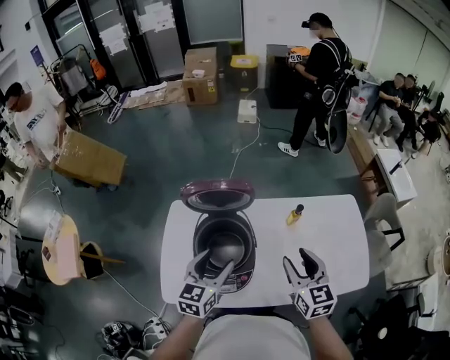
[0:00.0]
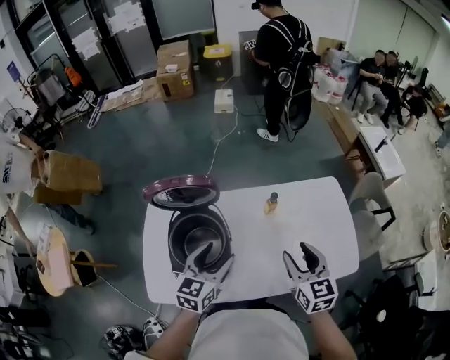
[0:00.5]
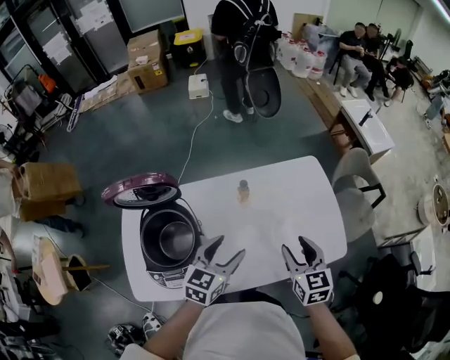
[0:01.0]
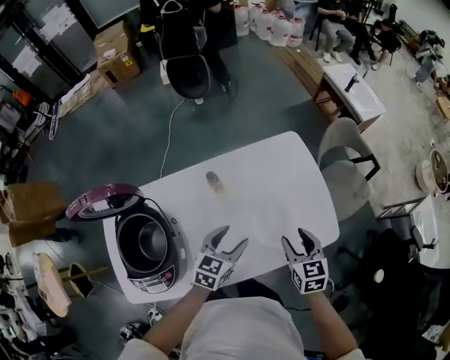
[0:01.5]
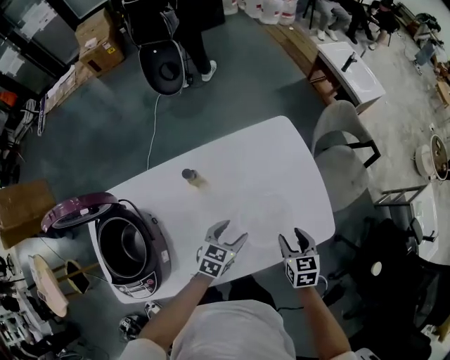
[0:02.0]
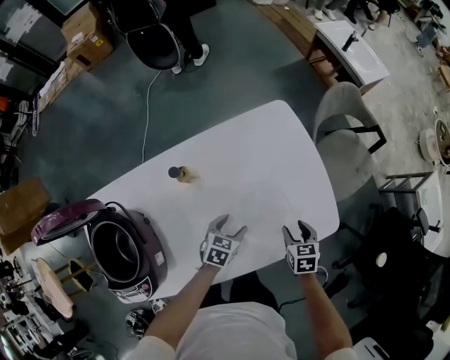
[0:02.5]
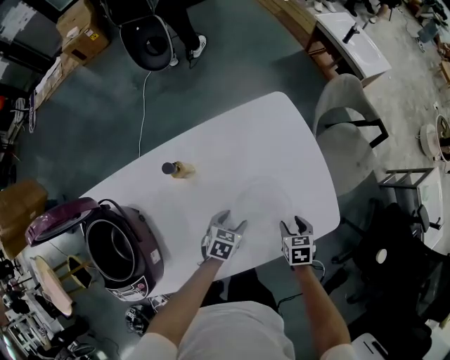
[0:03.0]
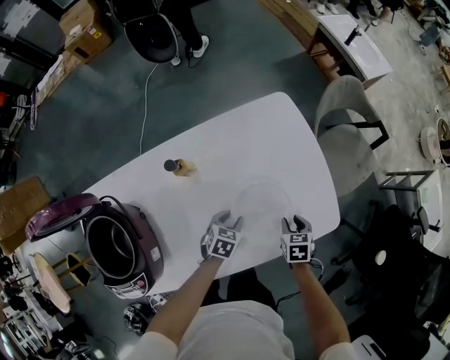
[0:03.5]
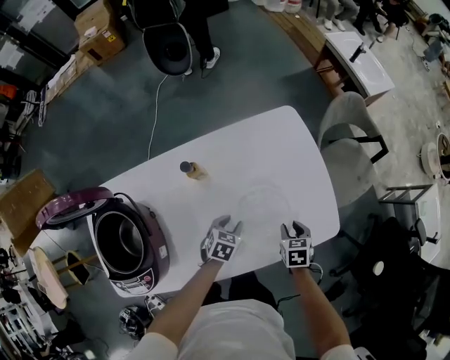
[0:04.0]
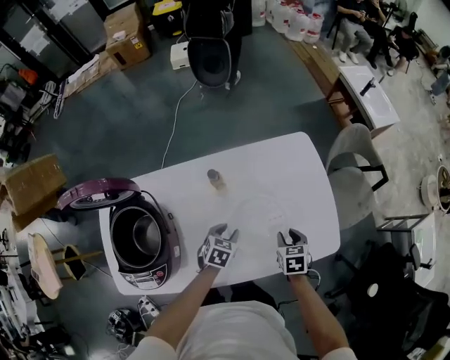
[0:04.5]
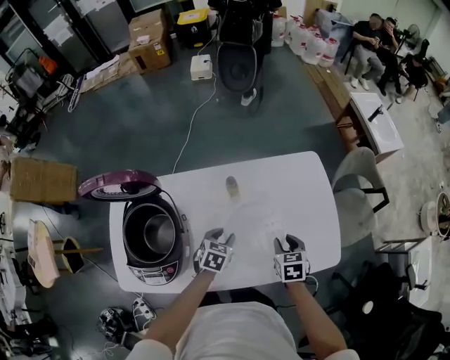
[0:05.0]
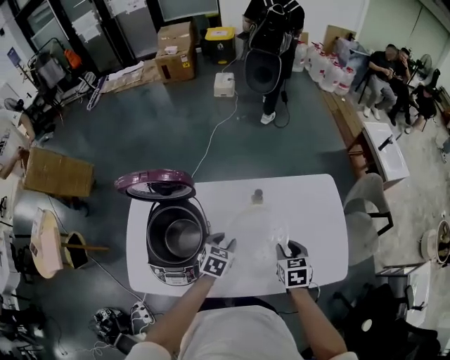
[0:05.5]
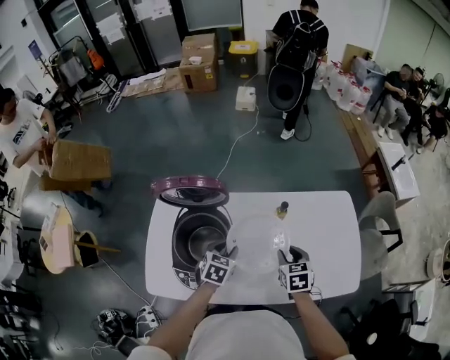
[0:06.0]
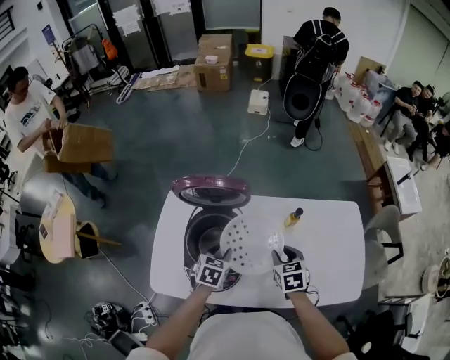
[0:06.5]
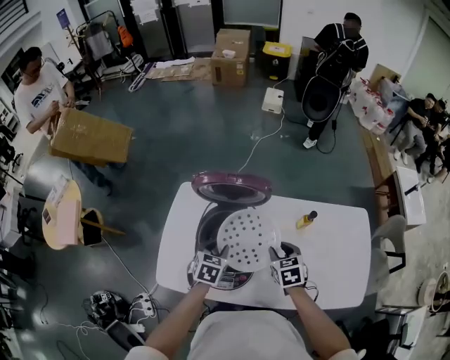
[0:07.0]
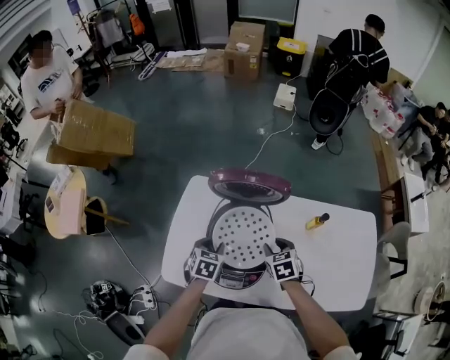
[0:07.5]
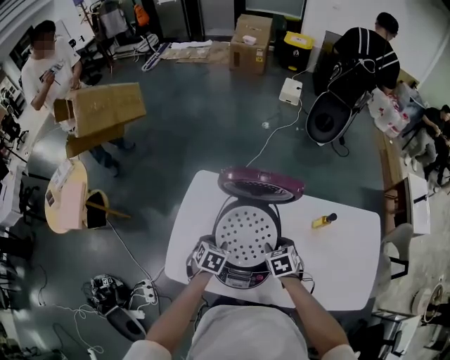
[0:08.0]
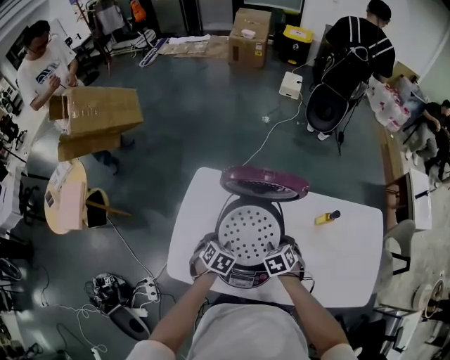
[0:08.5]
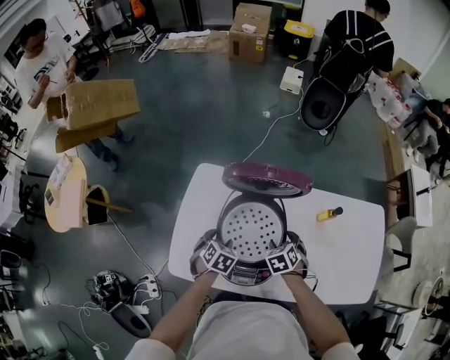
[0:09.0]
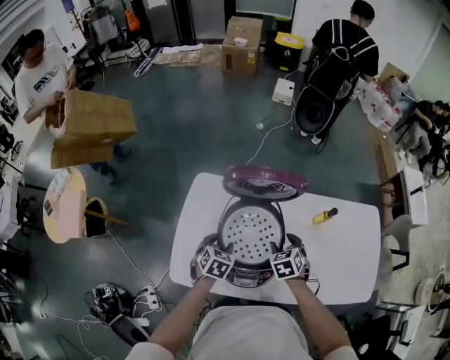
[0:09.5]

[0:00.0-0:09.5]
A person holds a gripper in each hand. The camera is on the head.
0.0 to 2.0 s: The right gripper shifts by about 50 cm, and rotates some 40 degrees, while the left gripper ends up about 50 cm from where it was, and changes its angle by about 40 degrees.
2.0 to 4.0 s: Both grippers travel together downward, approximately 10 cm. The left gripper closes up.
4.0 to 5.5 s: Both grippers travel together to the left and upward, some 25 cm. The right gripper turns by about 20 degrees.
5.5 to 7.5 s: Both grippers travel together to the left, some 30 cm. The left gripper changes its angle by roughly 20 degrees, while the right gripper rotates some 30 degrees.

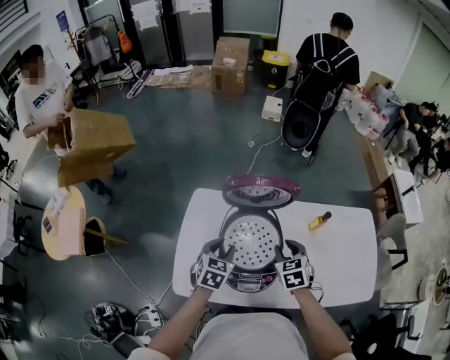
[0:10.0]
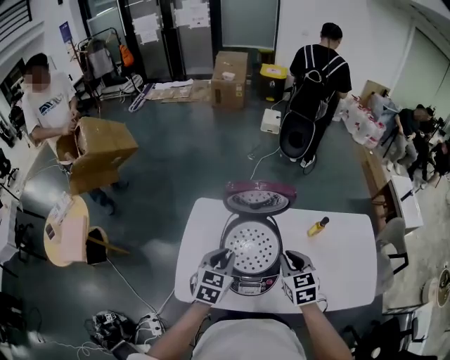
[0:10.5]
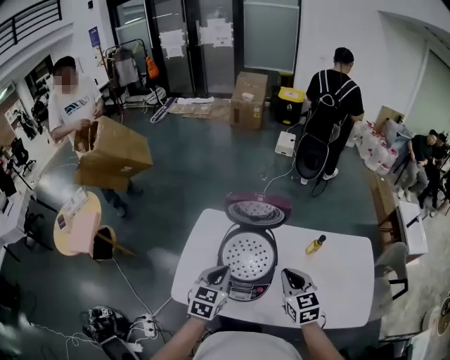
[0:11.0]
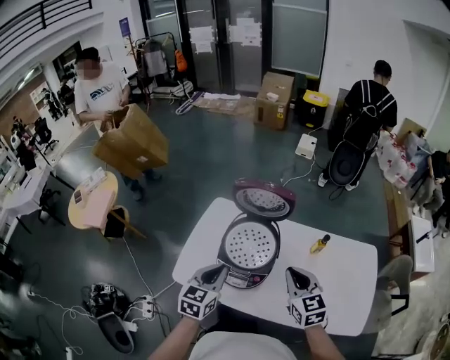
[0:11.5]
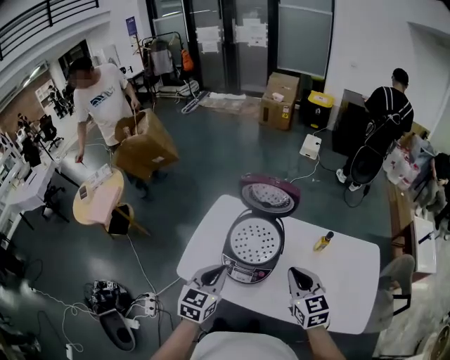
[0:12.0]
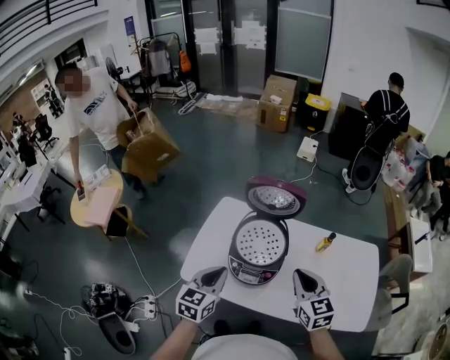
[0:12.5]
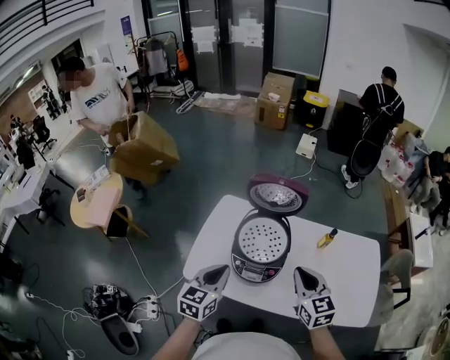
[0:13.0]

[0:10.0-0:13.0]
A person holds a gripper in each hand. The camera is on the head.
10.0 to 11.5 s: The left gripper travels backward and upward by about 20 cm, changes its angle by about 20 degrees, and closes. The right gripper travels upward, backward and to the right by about 20 cm, swivels approximately 30 degrees, and closes up.
11.5 to 13.0 s: The left gripper heads to the left, covering about 5 cm, while the right gripper moves approximately 5 cm.

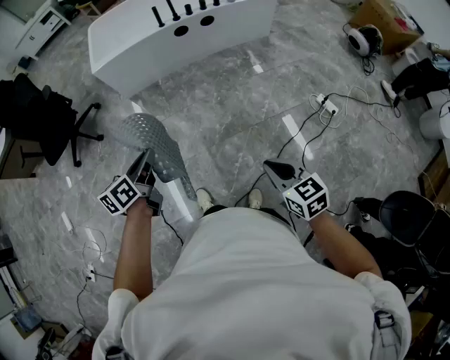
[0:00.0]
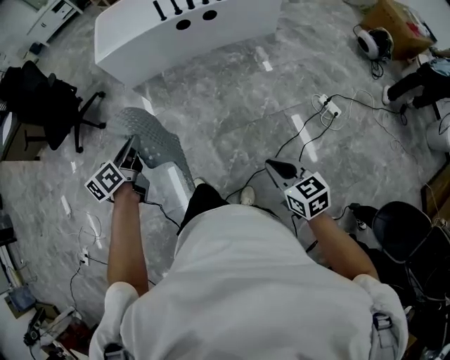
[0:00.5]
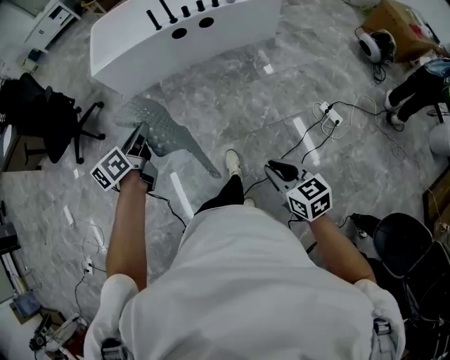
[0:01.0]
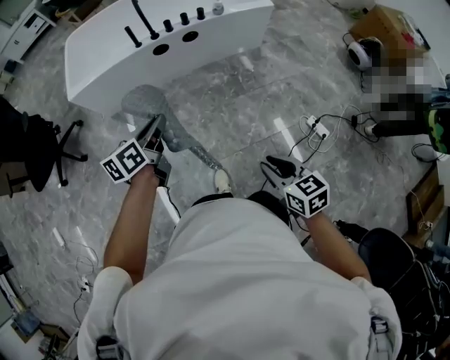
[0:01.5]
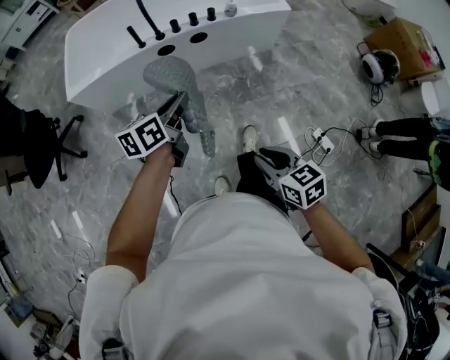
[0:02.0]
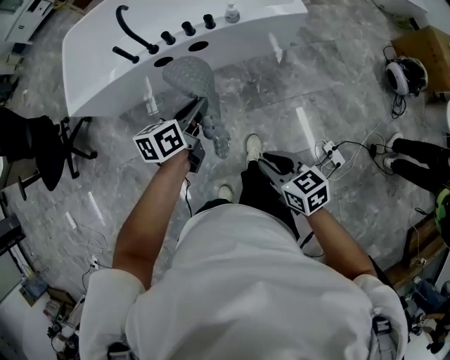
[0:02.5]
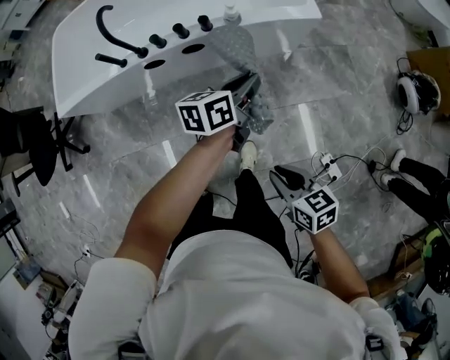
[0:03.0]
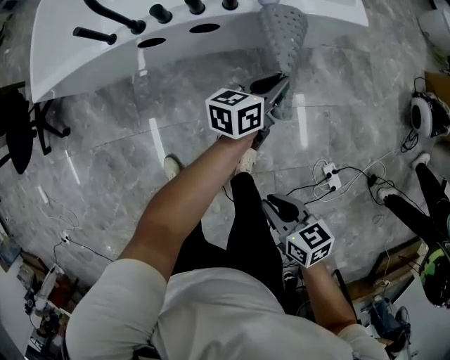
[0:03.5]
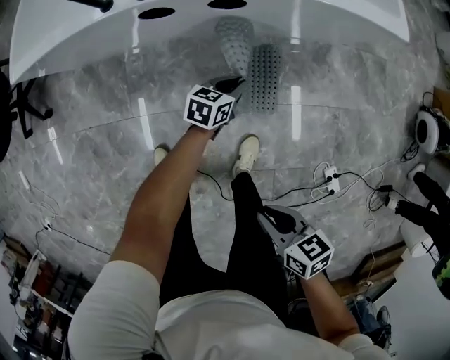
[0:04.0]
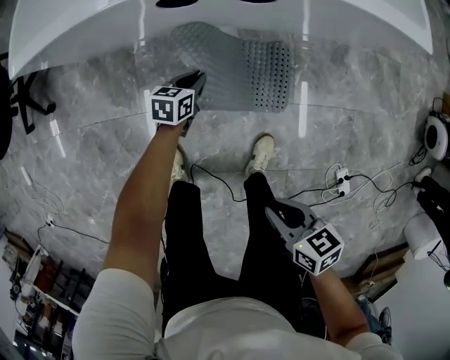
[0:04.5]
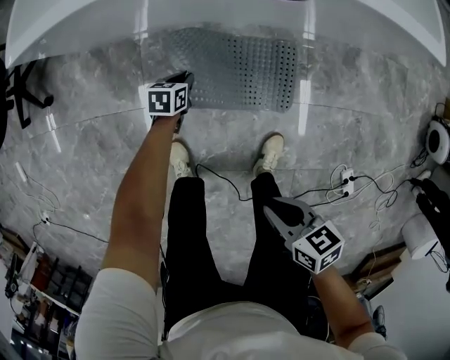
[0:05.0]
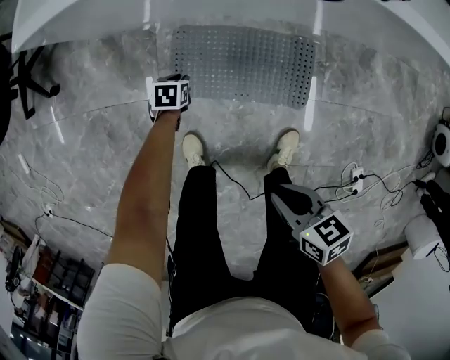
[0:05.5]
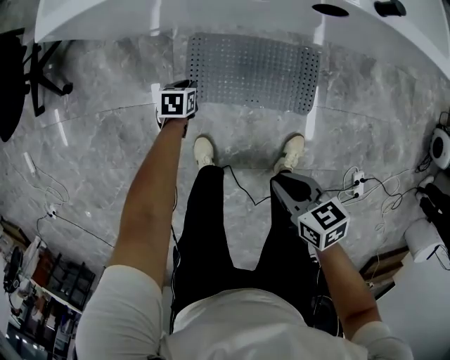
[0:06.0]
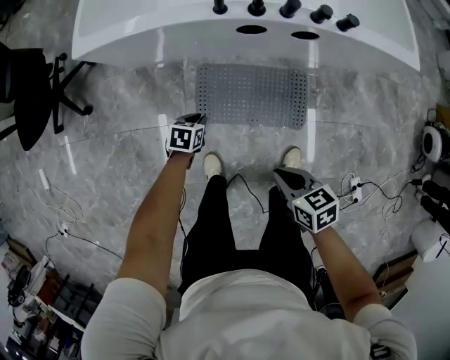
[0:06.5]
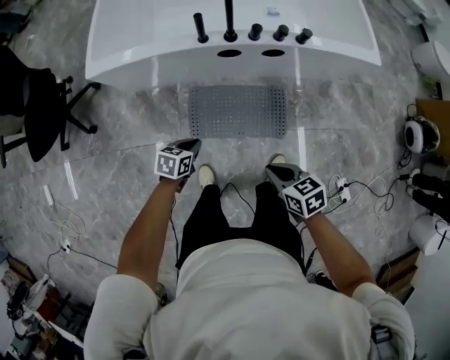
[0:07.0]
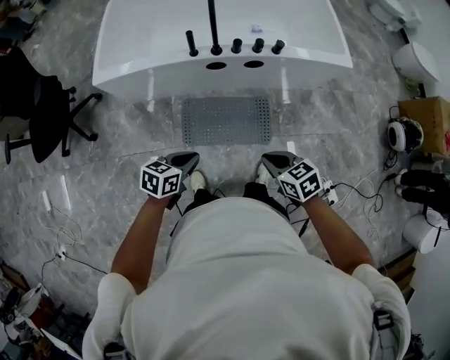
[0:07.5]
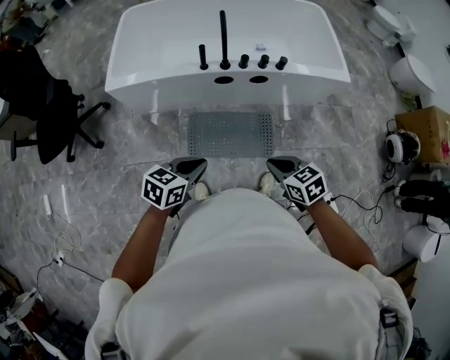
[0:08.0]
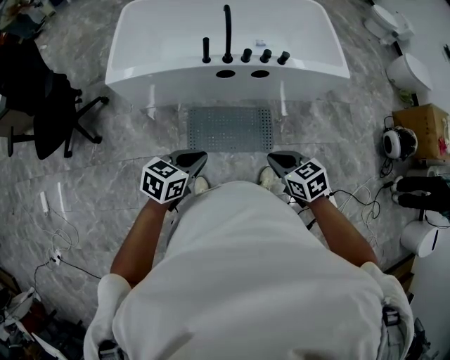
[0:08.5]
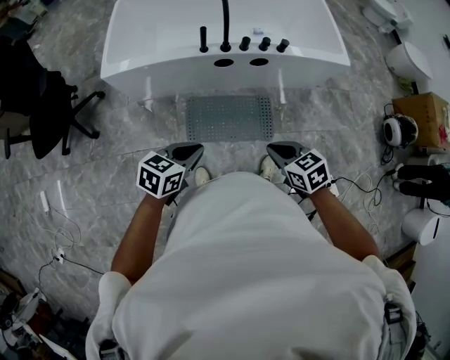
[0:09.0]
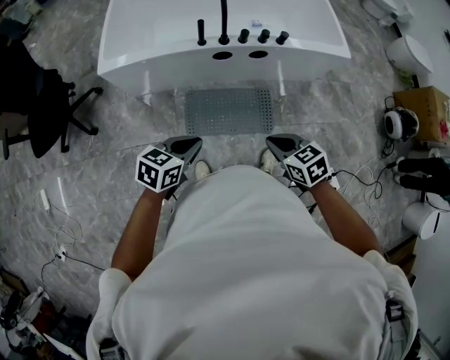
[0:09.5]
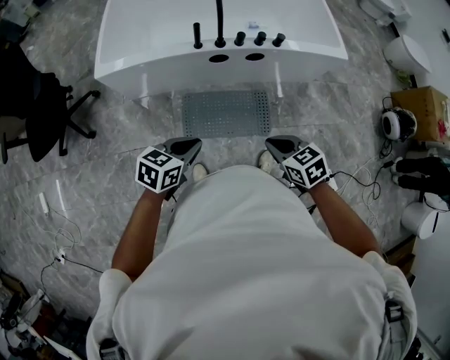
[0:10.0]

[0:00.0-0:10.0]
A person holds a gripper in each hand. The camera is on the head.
0.0 to 2.0 s: The grippers both shift forward and to the right by approximately 50 cm.
2.0 to 4.0 s: The right gripper heads downward and forward, covering roughly 30 cm, and rotates about 30 degrees; the left gripper heads downward and forward, covering roughly 60 cm, and changes its angle by roughly 20 degrees.
4.0 to 6.0 s: The right gripper goes approximately 20 cm to the left and forward. The left gripper moves to the left, roughly 40 cm, and rotates roughly 30 degrees.
6.0 to 8.0 s: The left gripper shifts approximately 60 cm upward and backward, and points its fingers some 30 degrees further upward, while the right gripper is displaced upward by some 25 cm, and changes its angle by roughly 20 degrees.
8.0 to 10.0 s: The grippers make only small movements.

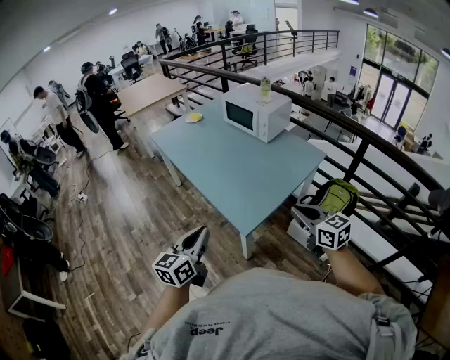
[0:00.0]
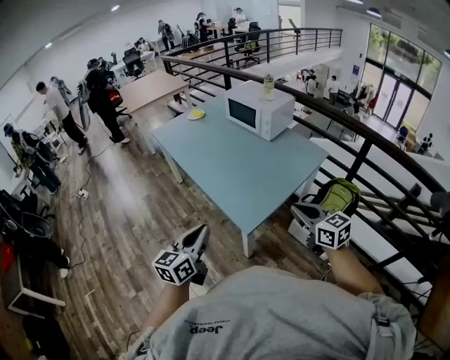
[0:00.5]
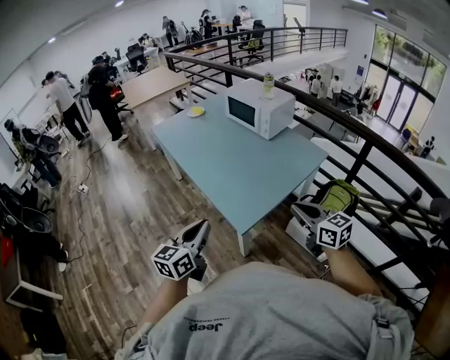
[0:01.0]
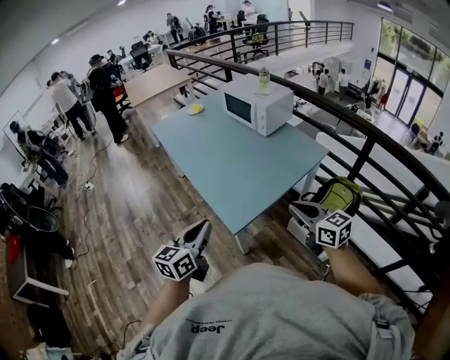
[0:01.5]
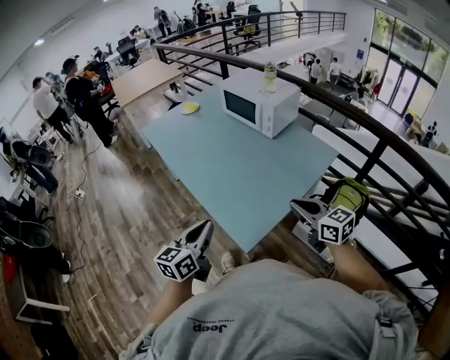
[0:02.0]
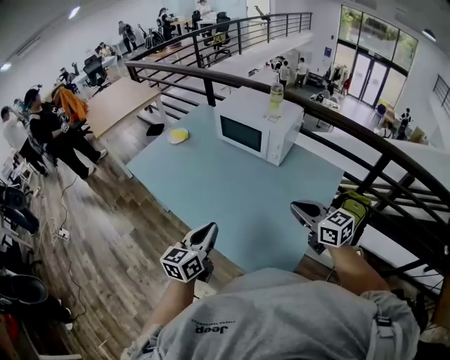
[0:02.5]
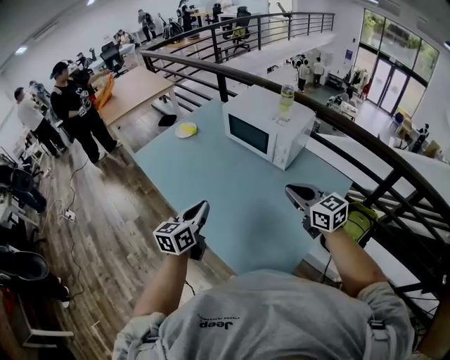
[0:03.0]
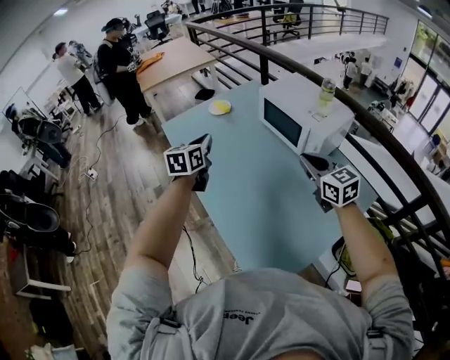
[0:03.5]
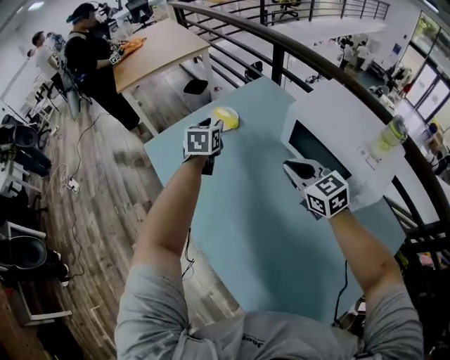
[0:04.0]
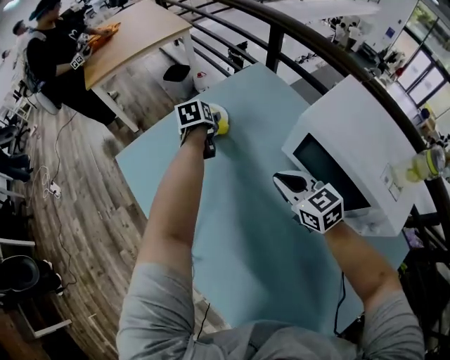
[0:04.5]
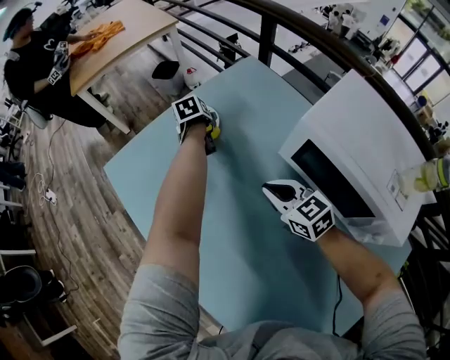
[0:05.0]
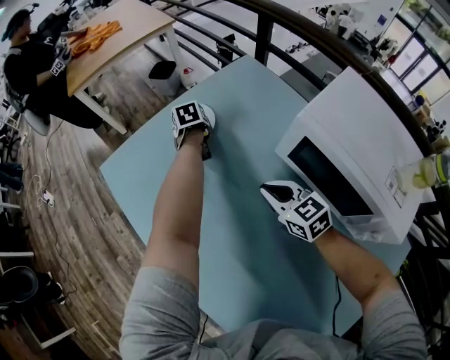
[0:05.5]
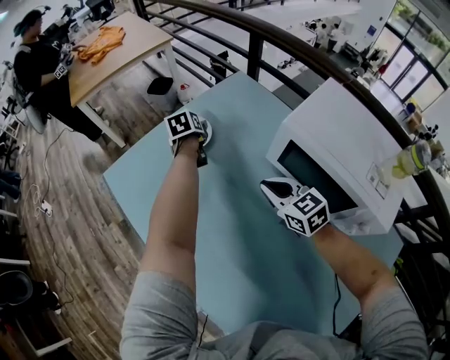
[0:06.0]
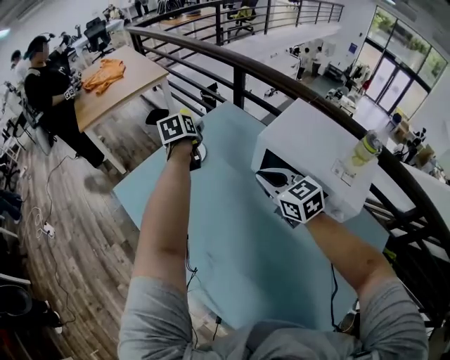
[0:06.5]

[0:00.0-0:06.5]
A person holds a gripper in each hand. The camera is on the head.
0.0 to 2.0 s: Both grippers travel together forward, some 15 cm.
2.0 to 4.5 s: Both grippers are carried forward, approximately 90 cm. The left gripper tips its fingers downward by approximately 40 degrees, and opens its fingers.
4.5 to 6.5 s: The two grippers go approximately 15 cm upward.
